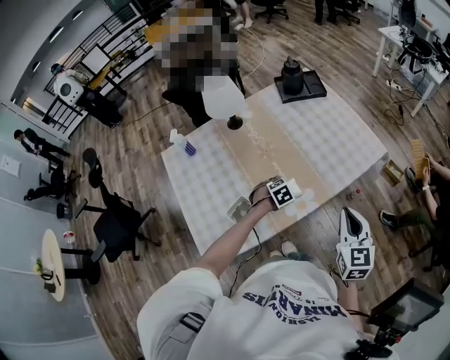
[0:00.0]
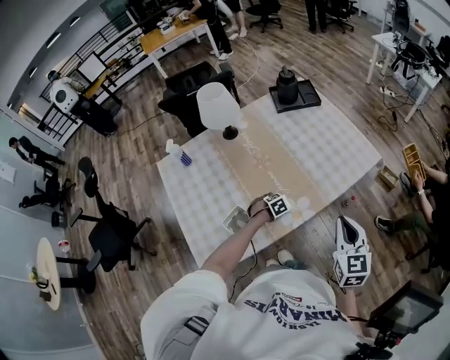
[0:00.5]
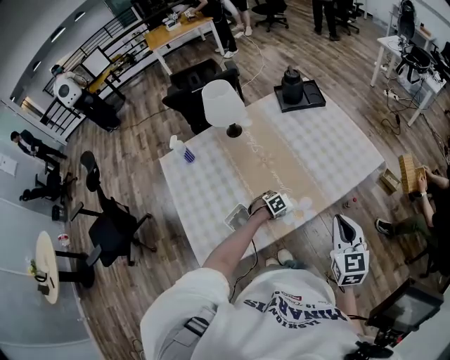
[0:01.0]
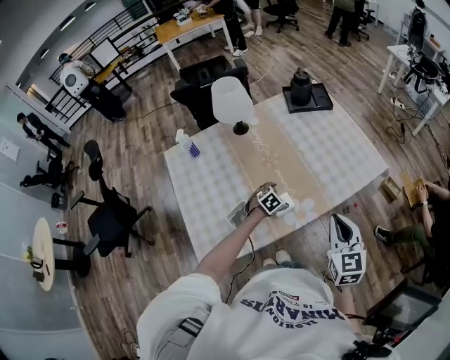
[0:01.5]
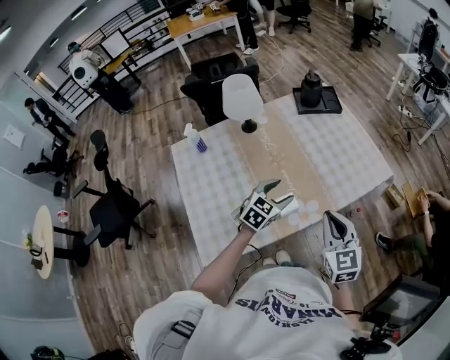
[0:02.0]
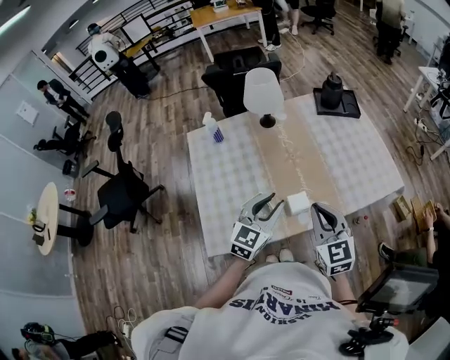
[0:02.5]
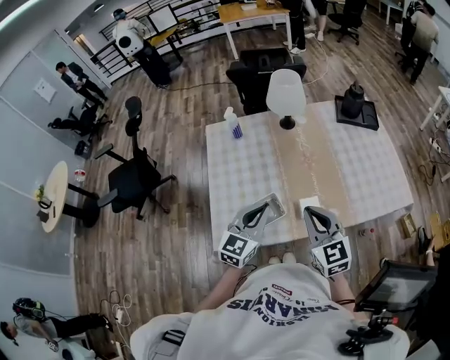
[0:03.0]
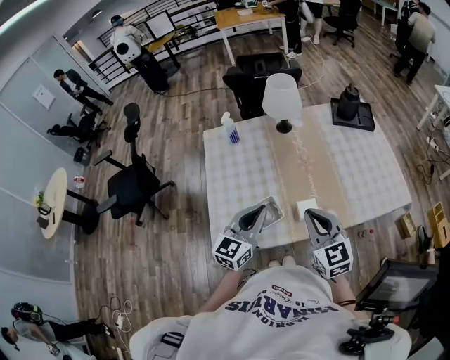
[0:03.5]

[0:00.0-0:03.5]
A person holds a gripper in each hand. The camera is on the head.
0.0 to 2.0 s: The right gripper shifts by roughly 10 cm. The left gripper is displaced upward by about 20 cm, and angles its fingers upward, by some 40 degrees.
2.0 to 3.5 s: The left gripper ends up roughly 20 cm from where it was, rotates some 40 degrees, and closes. The right gripper moves approximately 15 cm, and turns by about 30 degrees.

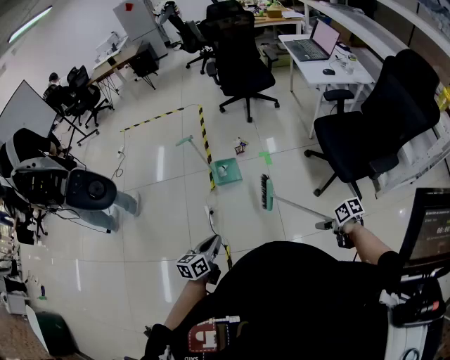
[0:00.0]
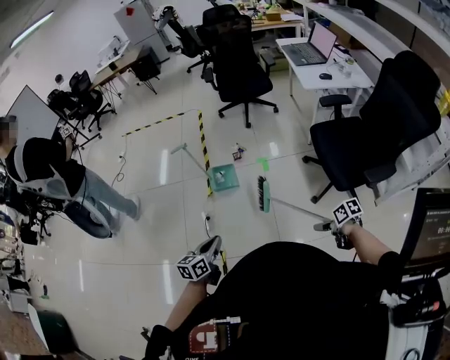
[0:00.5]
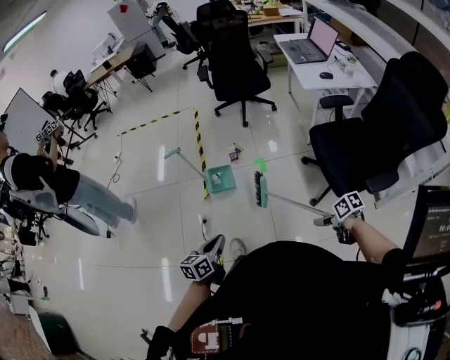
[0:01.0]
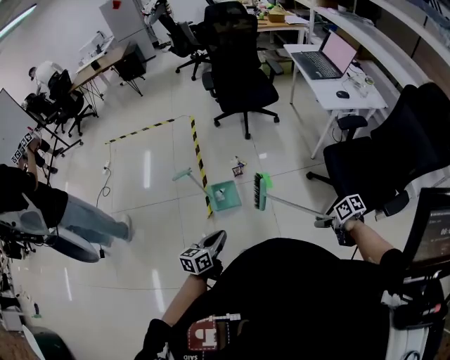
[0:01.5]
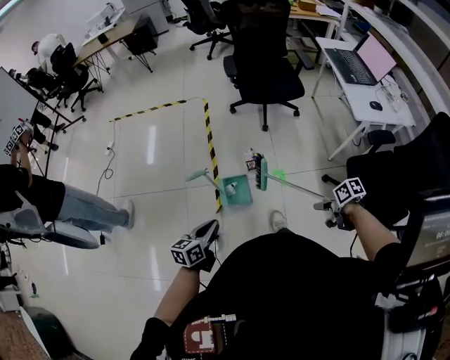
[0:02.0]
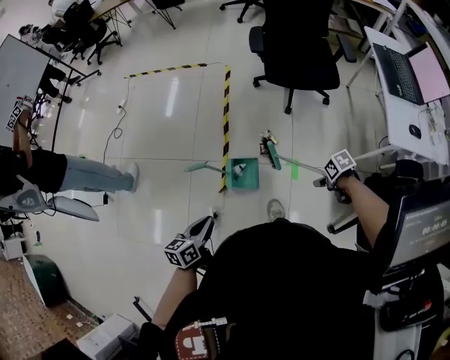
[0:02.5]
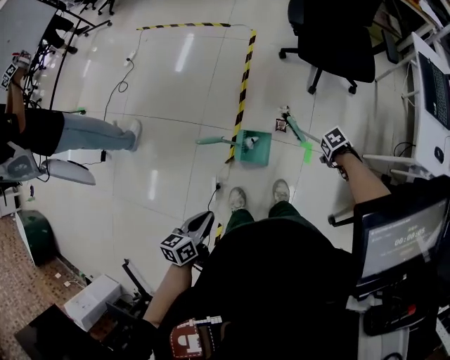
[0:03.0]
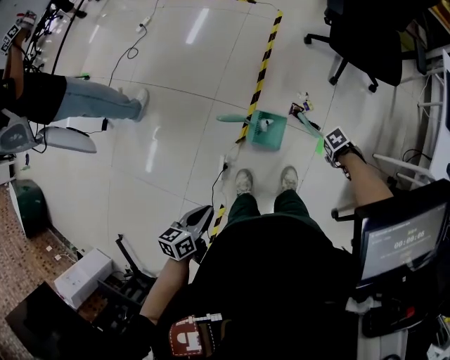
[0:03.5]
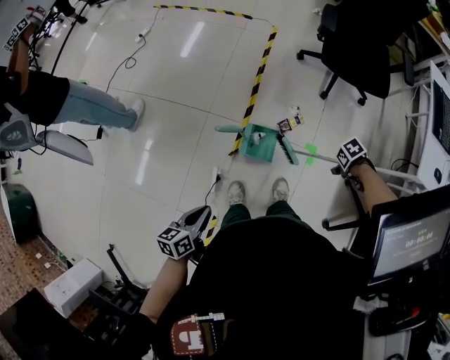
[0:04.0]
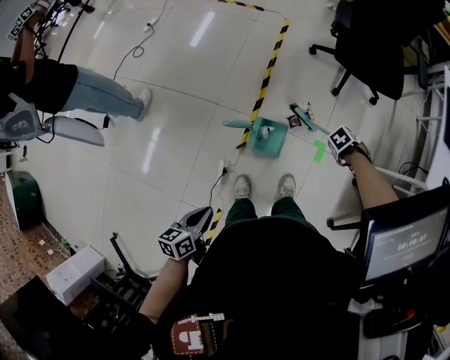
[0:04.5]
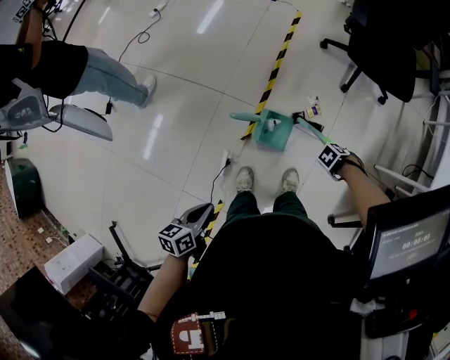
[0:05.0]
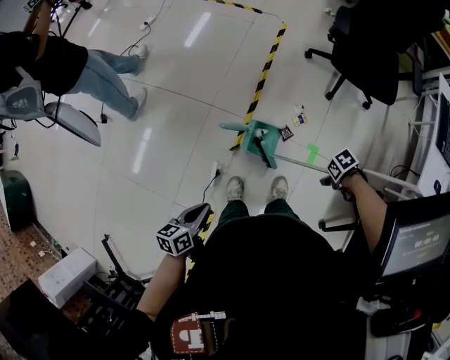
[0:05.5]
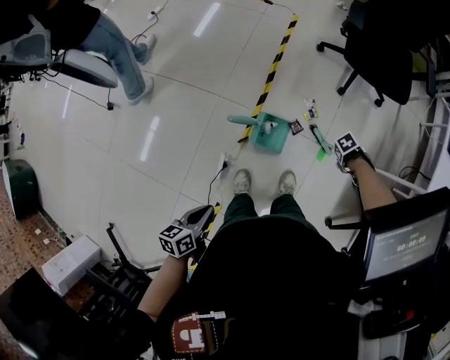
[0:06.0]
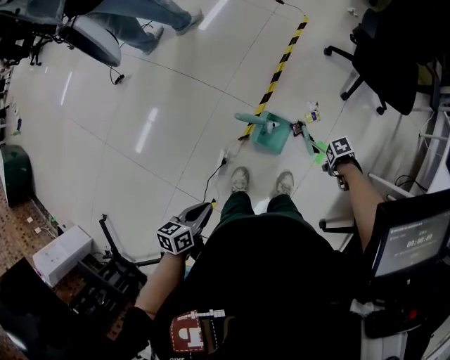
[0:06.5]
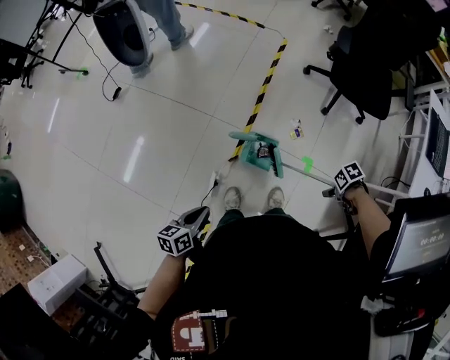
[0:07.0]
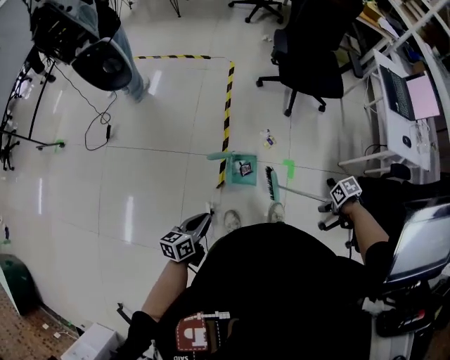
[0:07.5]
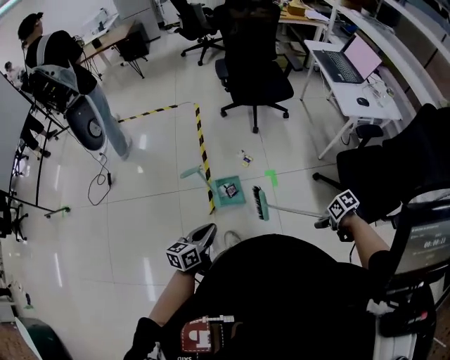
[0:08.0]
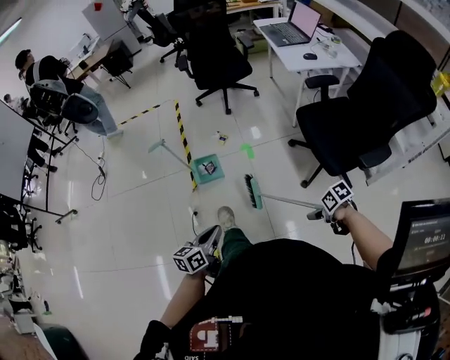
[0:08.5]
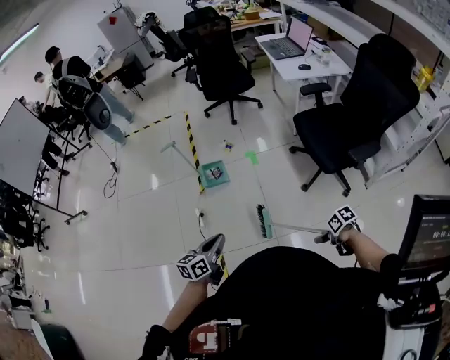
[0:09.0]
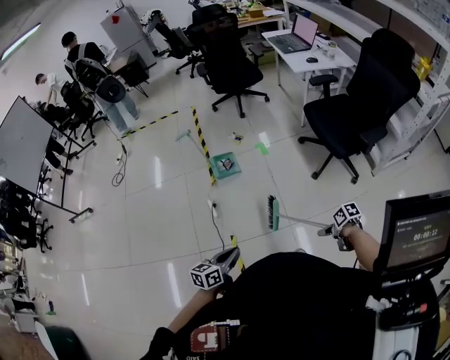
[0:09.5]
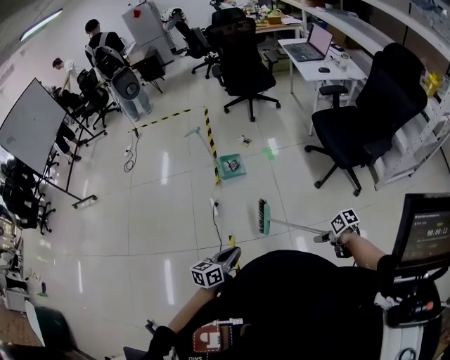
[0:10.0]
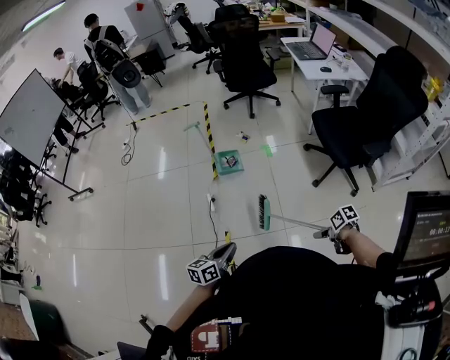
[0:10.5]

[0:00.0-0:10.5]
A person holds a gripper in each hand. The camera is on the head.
0.0 to 2.0 s: The left gripper changes place by about 40 cm.
2.0 to 4.0 s: The left gripper shifts by roughly 10 cm, and turns by about 30 degrees.
4.0 to 6.5 s: The left gripper shifts by some 5 cm.
6.5 to 8.5 s: The left gripper shifts by some 40 cm, and rotates about 40 degrees.
8.5 to 10.5 s: The left gripper changes place by about 30 cm.

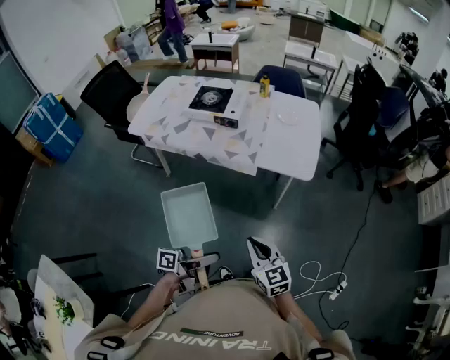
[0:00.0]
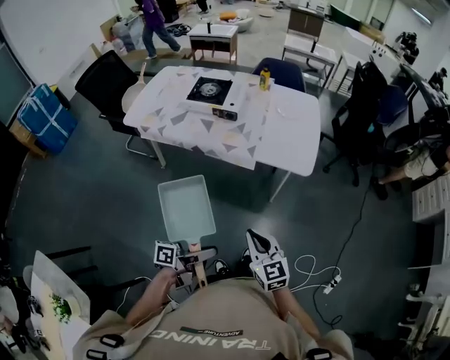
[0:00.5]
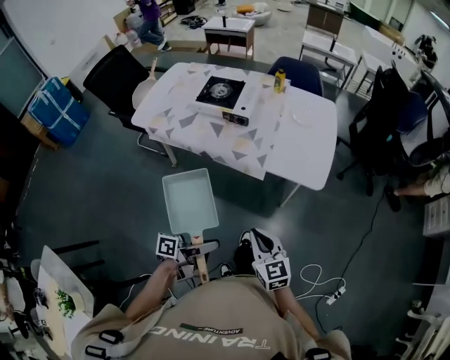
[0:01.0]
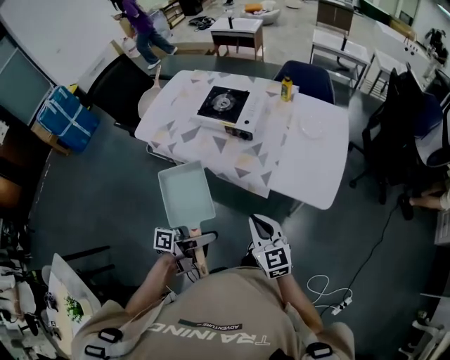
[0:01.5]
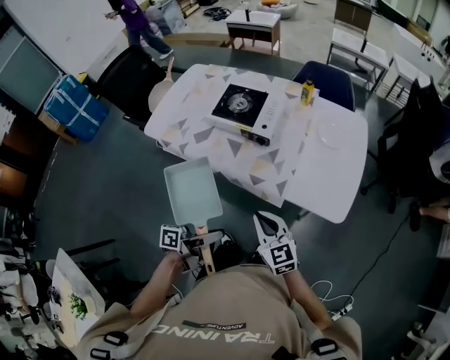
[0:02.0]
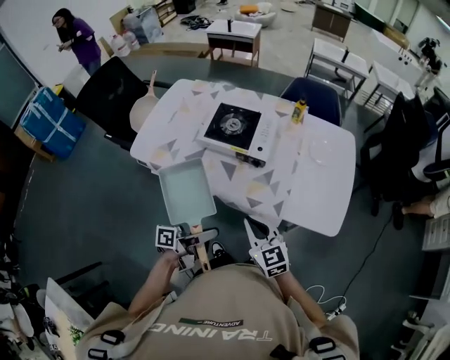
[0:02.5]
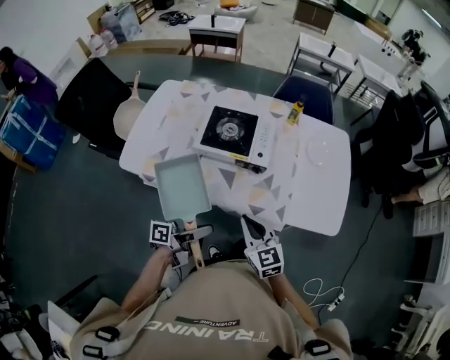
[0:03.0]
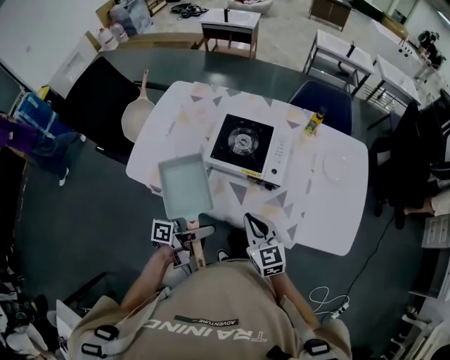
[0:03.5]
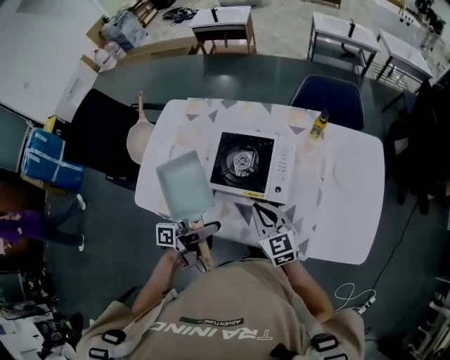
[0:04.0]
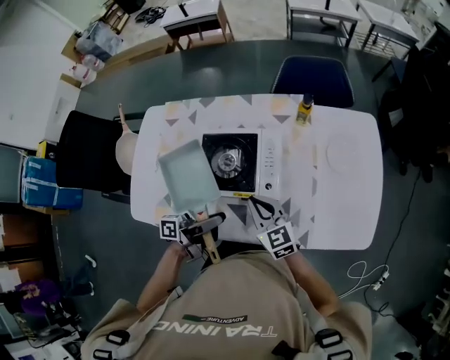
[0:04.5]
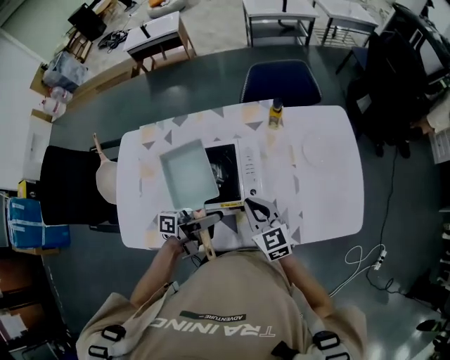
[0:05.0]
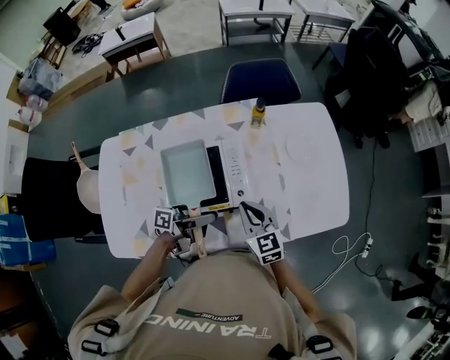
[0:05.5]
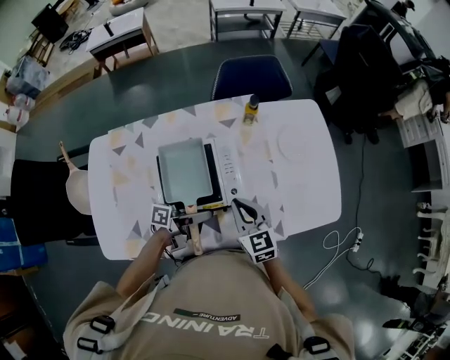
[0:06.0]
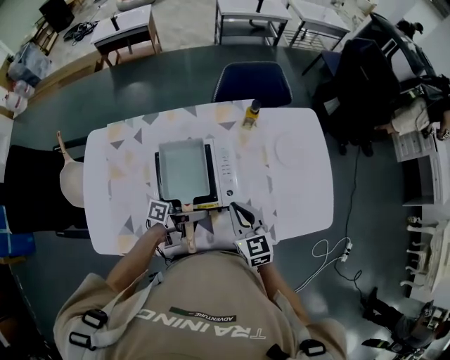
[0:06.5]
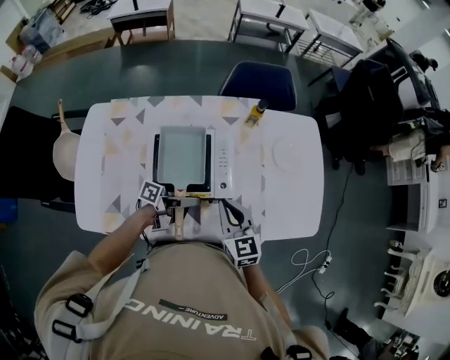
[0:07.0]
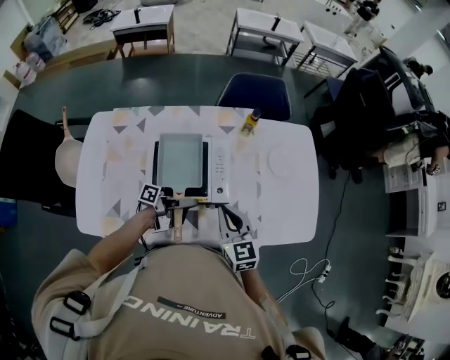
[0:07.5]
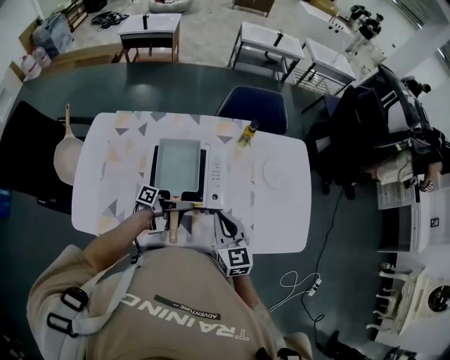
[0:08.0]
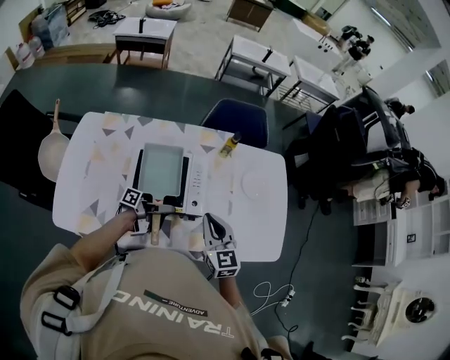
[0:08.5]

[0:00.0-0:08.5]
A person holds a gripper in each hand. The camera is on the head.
0.0 to 2.0 s: The right gripper changes place by approximately 30 cm.
2.0 to 4.0 s: The right gripper changes place by approximately 35 cm.
4.0 to 6.5 s: The right gripper shifts by about 5 cm, and turns by roughly 30 degrees.
6.5 to 8.5 s: The right gripper shifts about 5 cm upward.

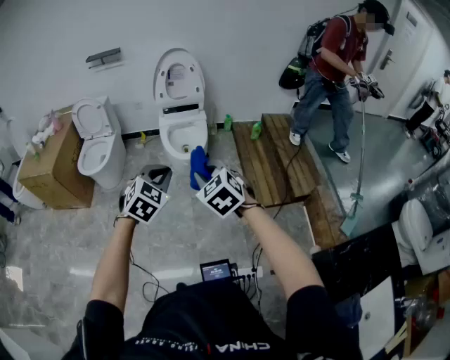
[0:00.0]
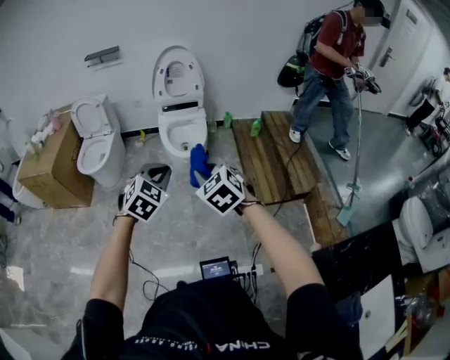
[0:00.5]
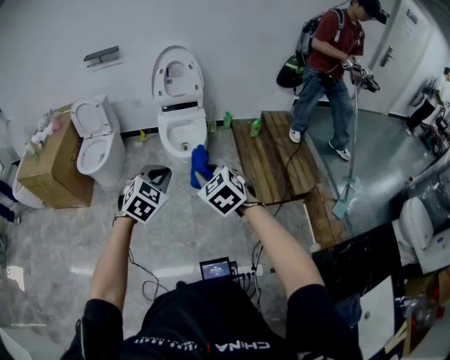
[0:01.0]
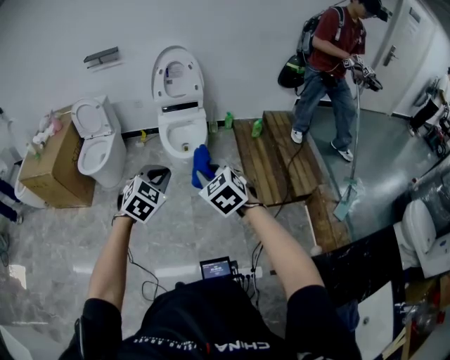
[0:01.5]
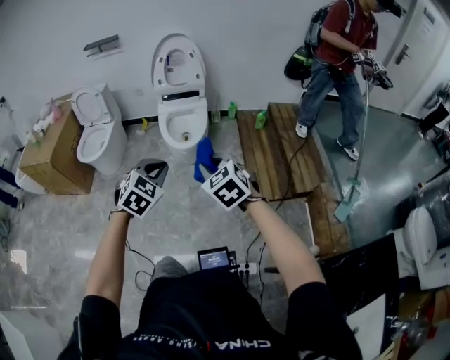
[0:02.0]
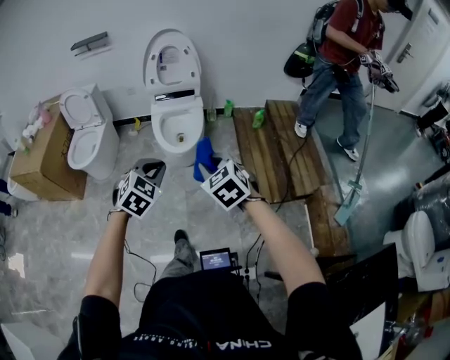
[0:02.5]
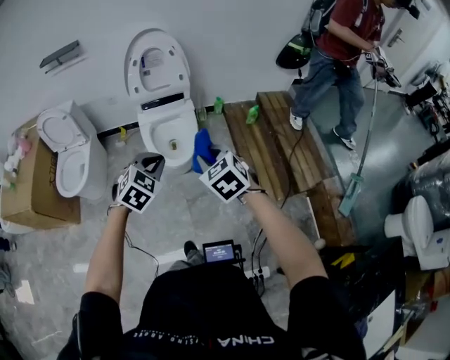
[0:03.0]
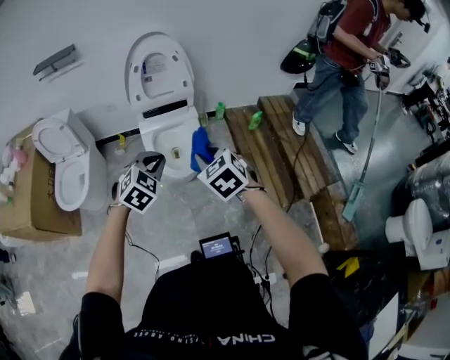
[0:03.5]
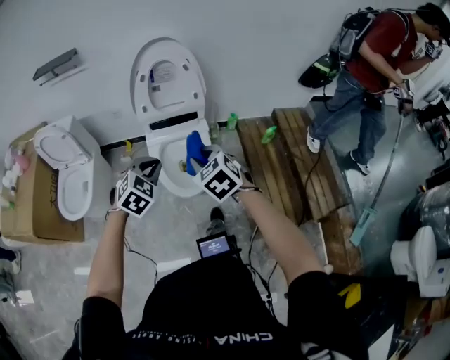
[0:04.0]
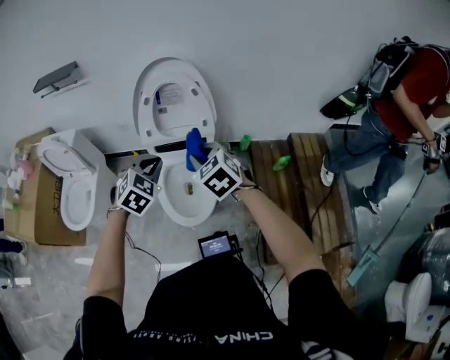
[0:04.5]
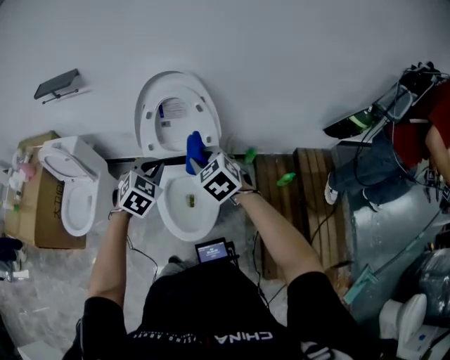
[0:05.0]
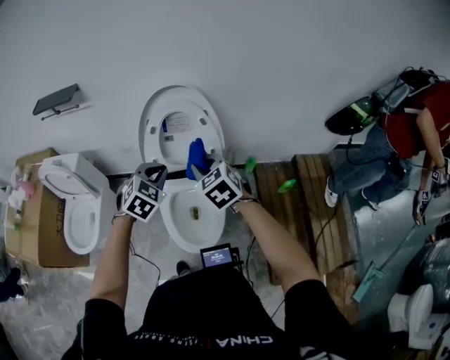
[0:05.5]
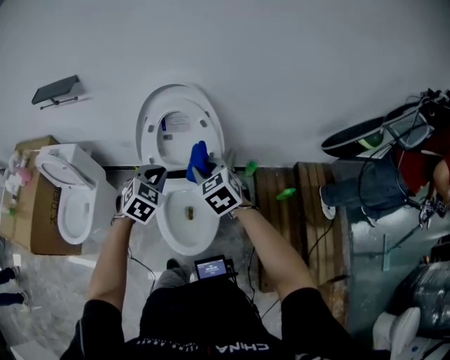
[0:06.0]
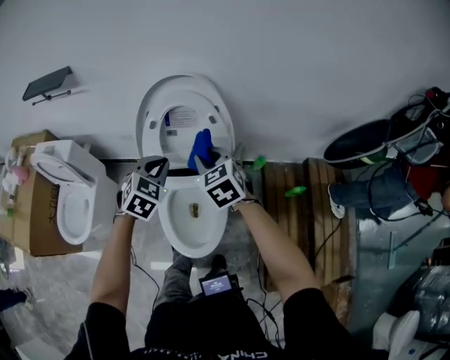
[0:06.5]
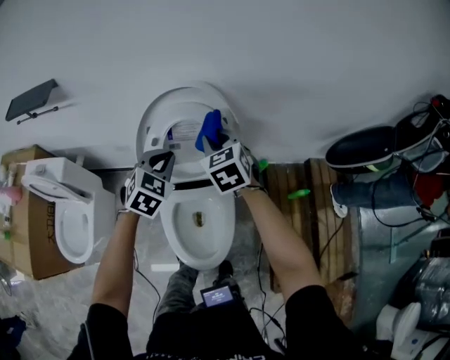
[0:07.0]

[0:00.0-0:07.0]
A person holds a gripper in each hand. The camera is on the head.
0.0 to 2.0 s: The two grippers go approximately 10 cm to the right.
2.0 to 3.5 s: Both grippers travel together forward, some 35 cm.
3.5 to 5.0 s: The grippers both shift forward by some 40 cm.
5.0 to 7.0 s: Both grippers move forward, some 25 cm.
